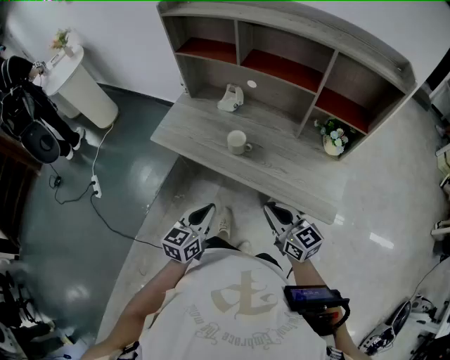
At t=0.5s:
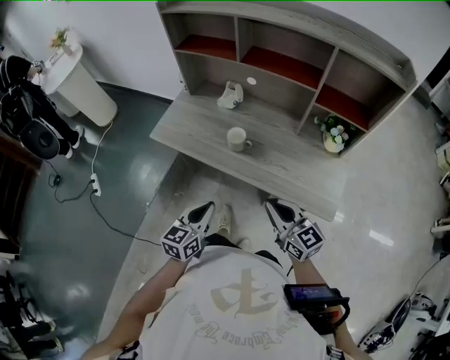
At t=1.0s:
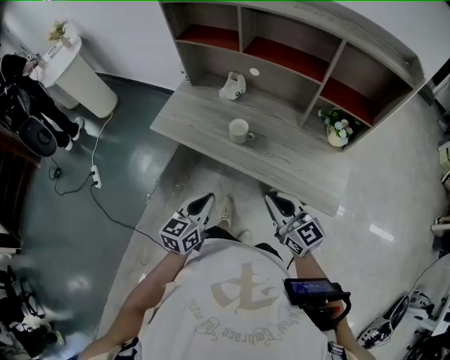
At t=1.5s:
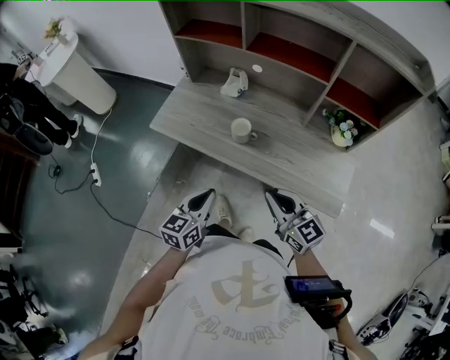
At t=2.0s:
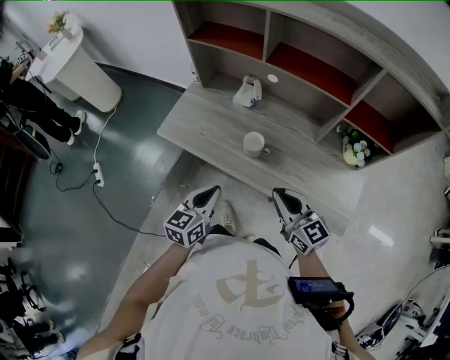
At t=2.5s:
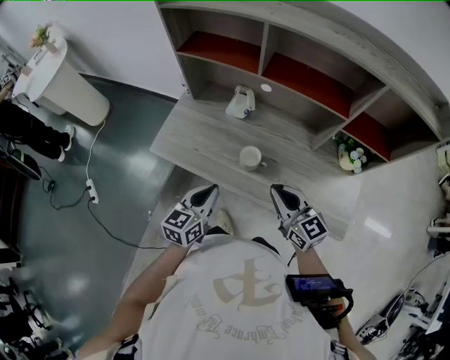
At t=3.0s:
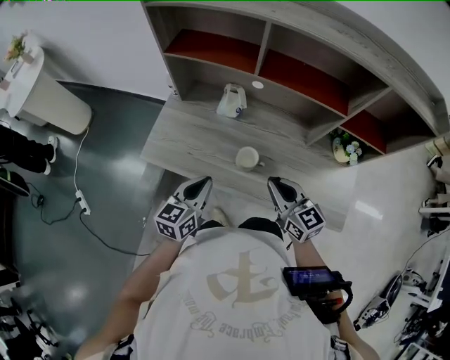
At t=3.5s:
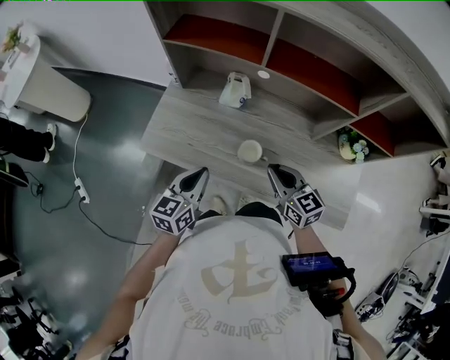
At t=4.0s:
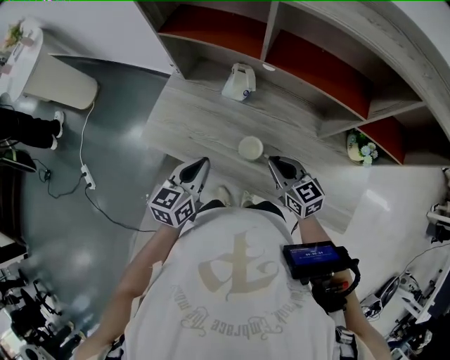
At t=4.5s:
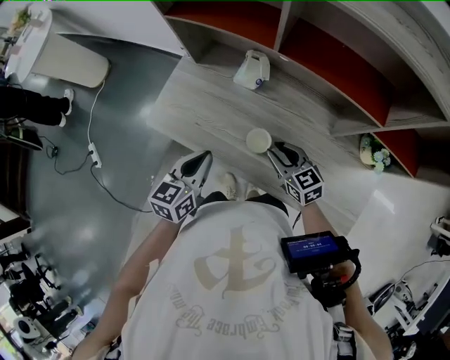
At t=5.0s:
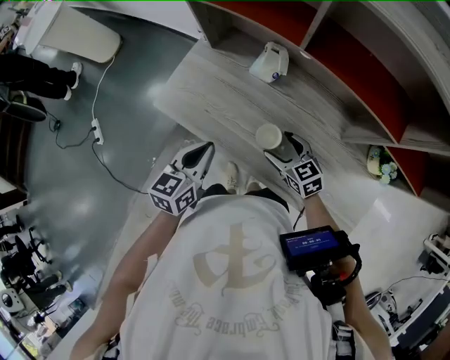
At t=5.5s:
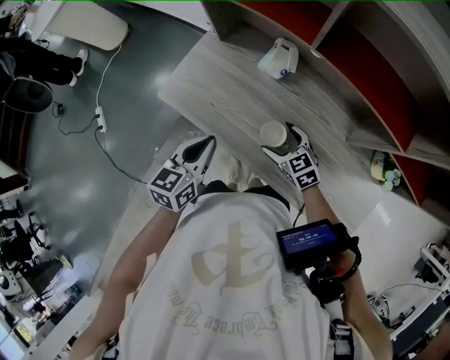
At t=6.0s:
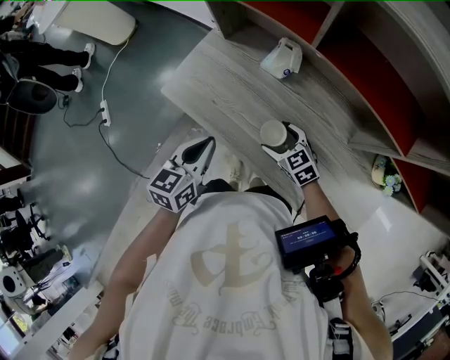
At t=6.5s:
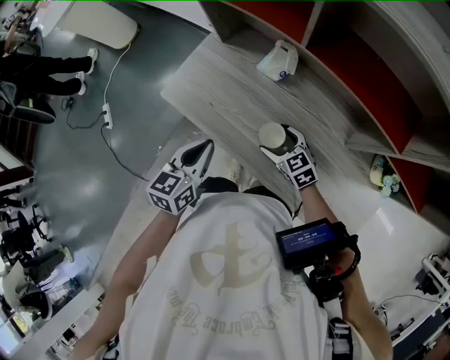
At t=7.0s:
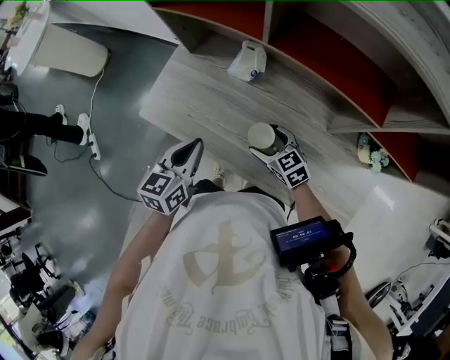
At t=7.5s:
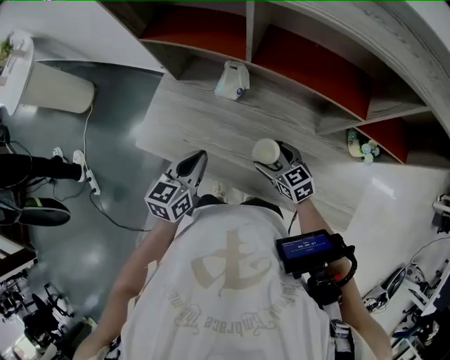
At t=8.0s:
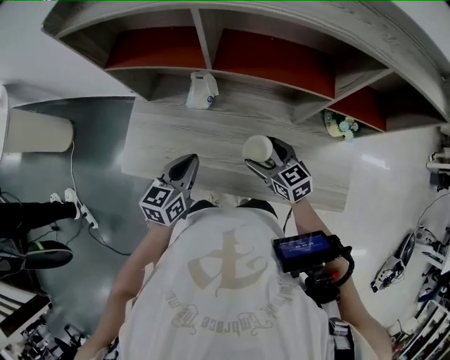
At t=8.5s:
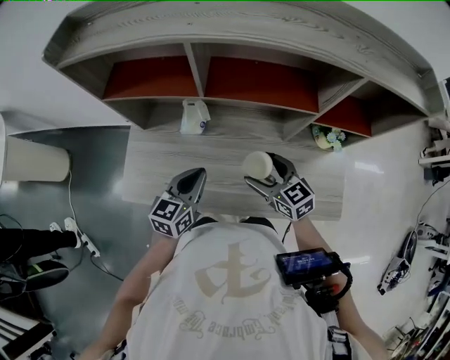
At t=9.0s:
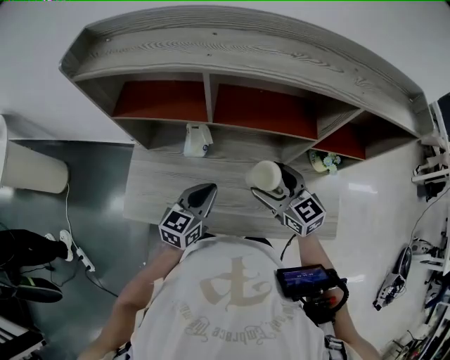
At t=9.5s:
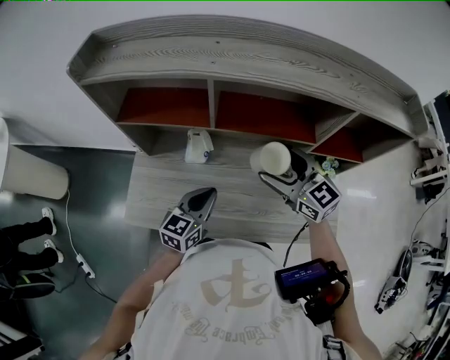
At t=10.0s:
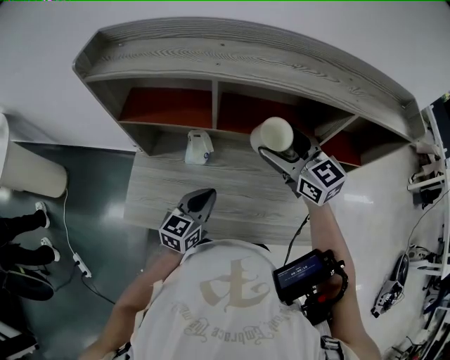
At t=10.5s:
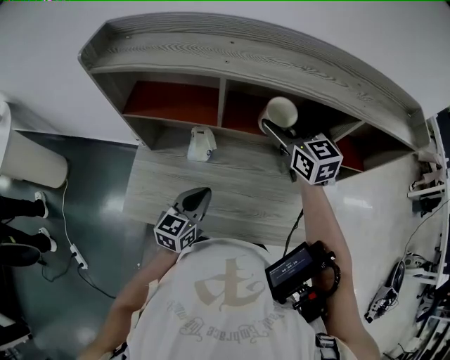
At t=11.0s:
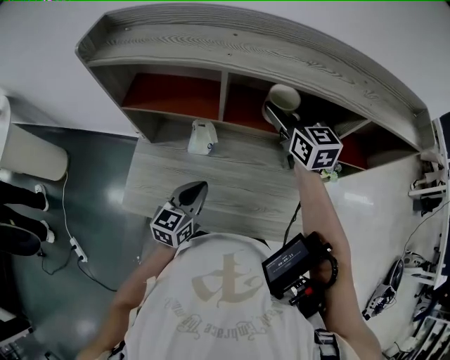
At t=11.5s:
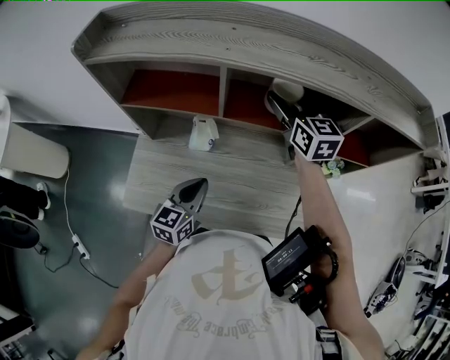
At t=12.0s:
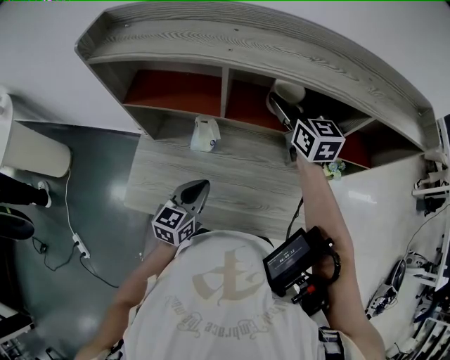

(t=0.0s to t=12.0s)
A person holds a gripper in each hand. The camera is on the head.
t=0.0s - t=2.0s: Both grippers move forward, approximately 10 cm.
t=2.0s - t=4.0s: The left gripper travels forward by about 20 cm, while the right gripper travels forward and downward by roughly 20 cm.
t=4.0s - t=6.0s: The right gripper goes roughly 15 cm downward and forward, turns by roughly 30 degrees, and opens its fingers.
t=6.0s - t=8.0s: The right gripper travels upward by approximately 10 cm, and swivels some 30 degrees, while the left gripper moves about 10 cm, and swivels approximately 30 degrees.
t=8.0s - t=10.0s: The right gripper travels upward and forward by roughly 30 cm, and rotates about 20 degrees. The left gripper changes place by some 5 cm.
t=10.0s - t=12.0s: The right gripper moves forward, roughly 10 cm.

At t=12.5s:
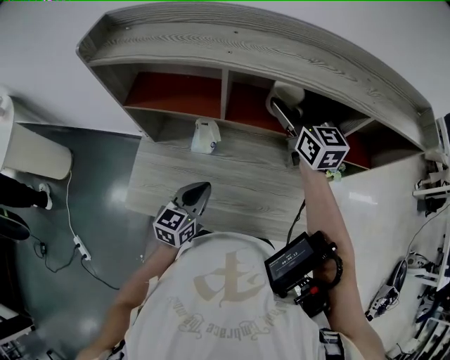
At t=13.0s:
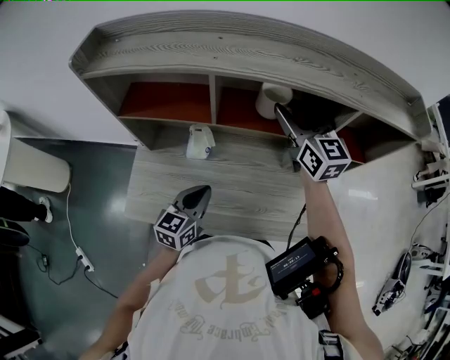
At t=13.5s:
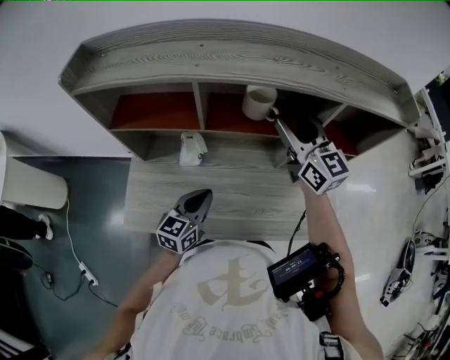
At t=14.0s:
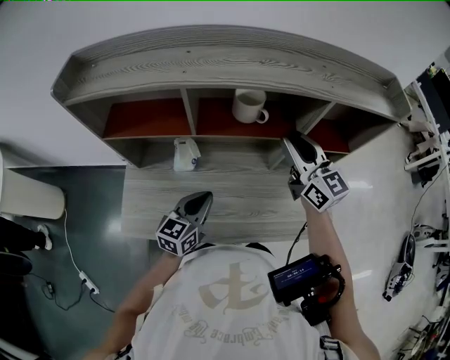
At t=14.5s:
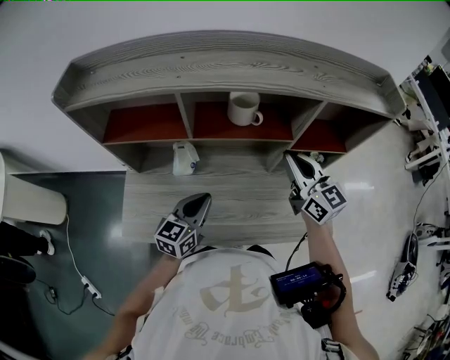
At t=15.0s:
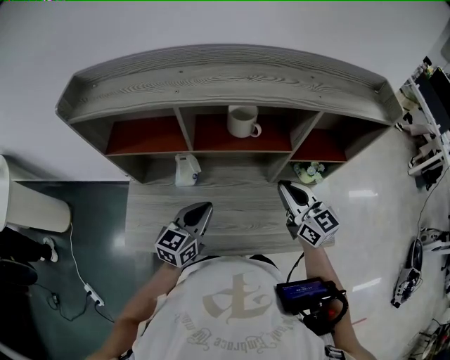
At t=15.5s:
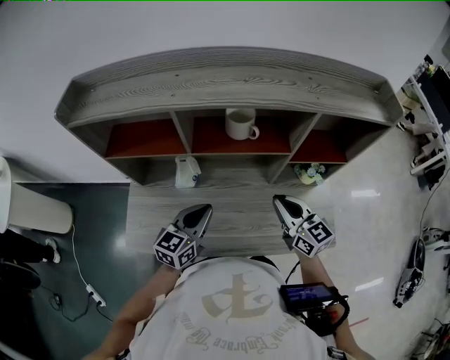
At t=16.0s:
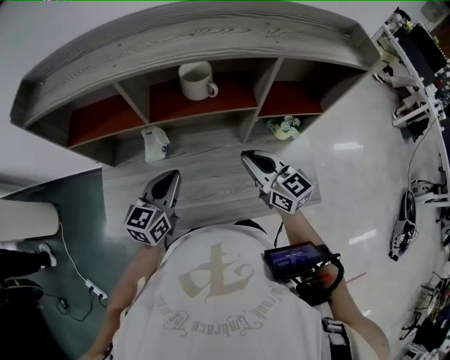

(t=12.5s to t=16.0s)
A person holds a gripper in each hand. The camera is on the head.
t=12.5s - t=14.5s: The right gripper travels backward and to the right by roughly 15 cm, and closes. The left gripper is displaced to the right by some 5 cm.
t=14.5s - t=16.0s: The right gripper goes roughly 10 cm downward.

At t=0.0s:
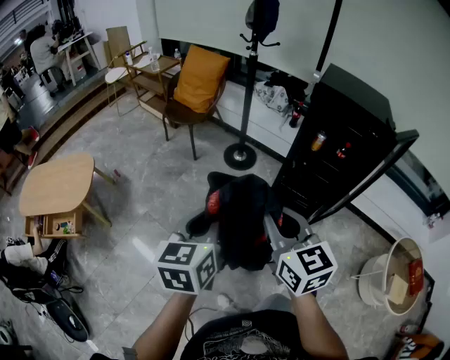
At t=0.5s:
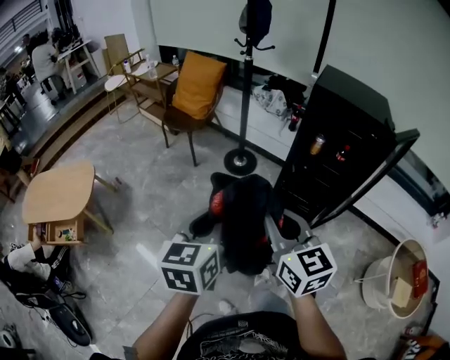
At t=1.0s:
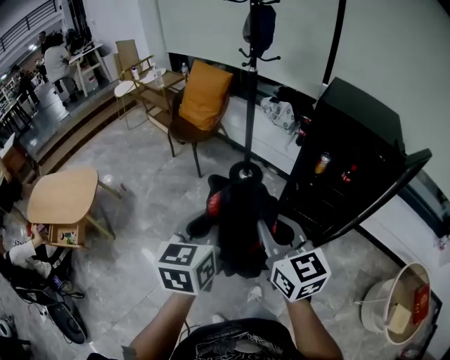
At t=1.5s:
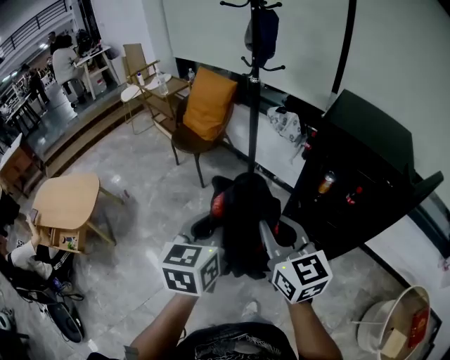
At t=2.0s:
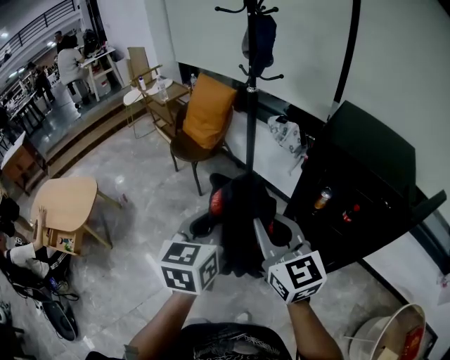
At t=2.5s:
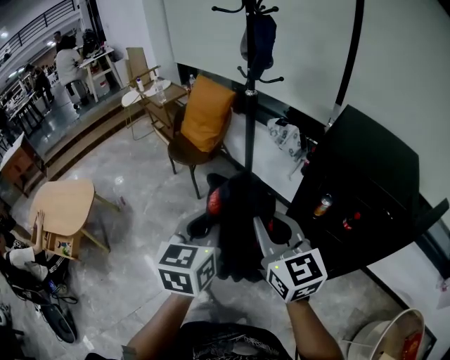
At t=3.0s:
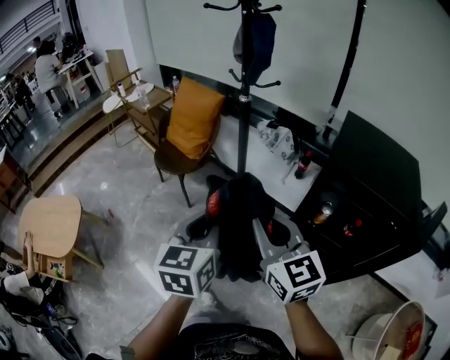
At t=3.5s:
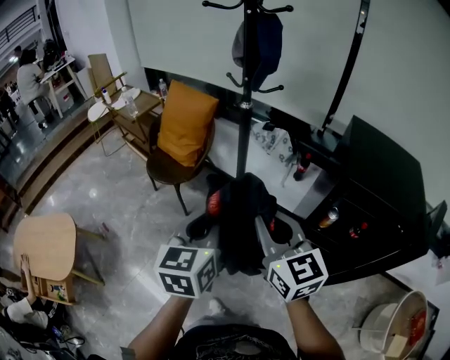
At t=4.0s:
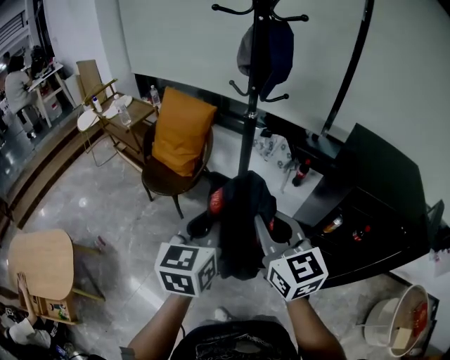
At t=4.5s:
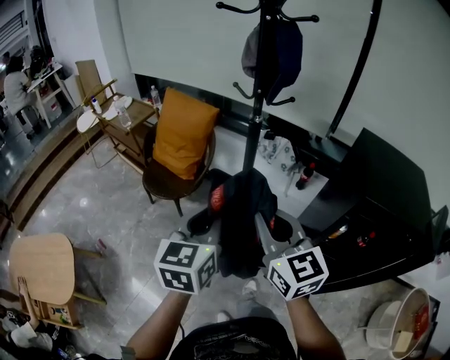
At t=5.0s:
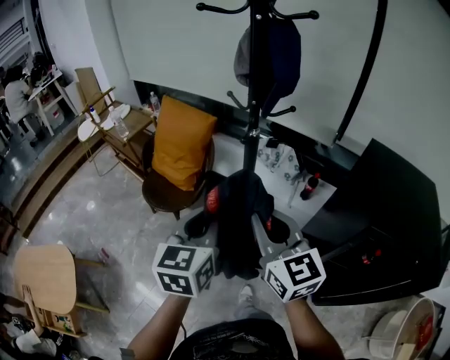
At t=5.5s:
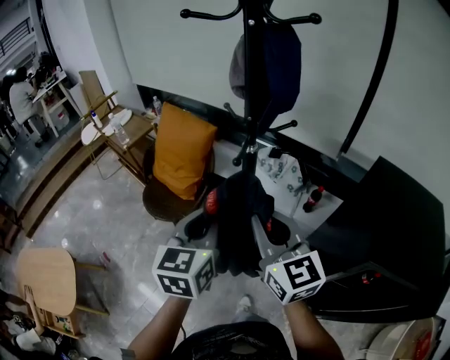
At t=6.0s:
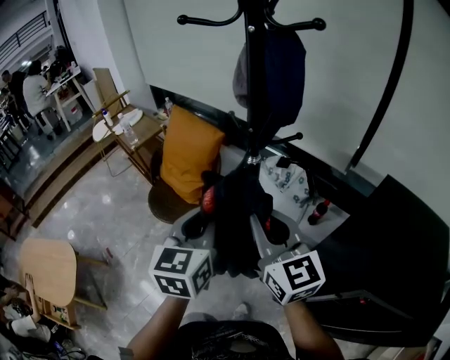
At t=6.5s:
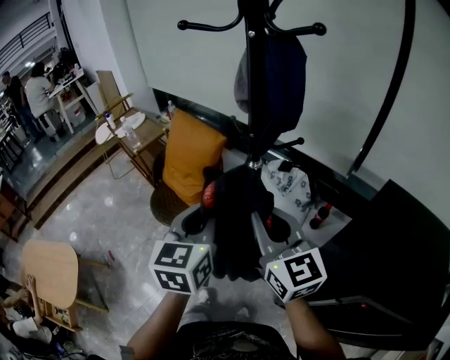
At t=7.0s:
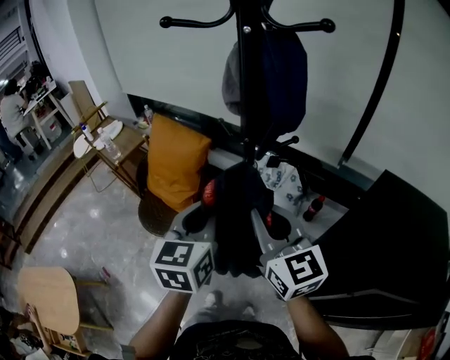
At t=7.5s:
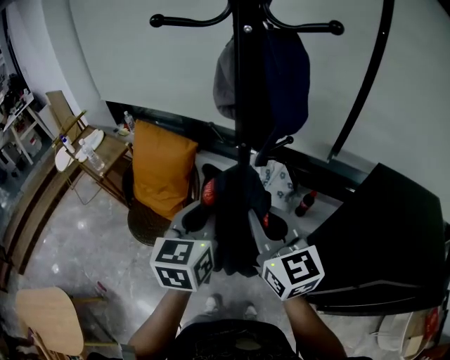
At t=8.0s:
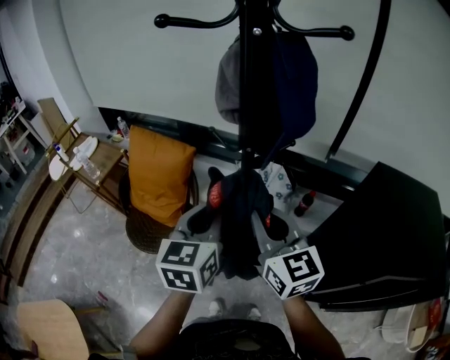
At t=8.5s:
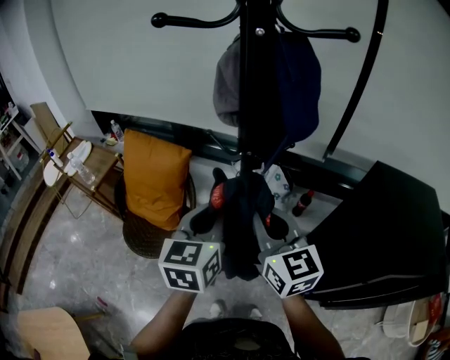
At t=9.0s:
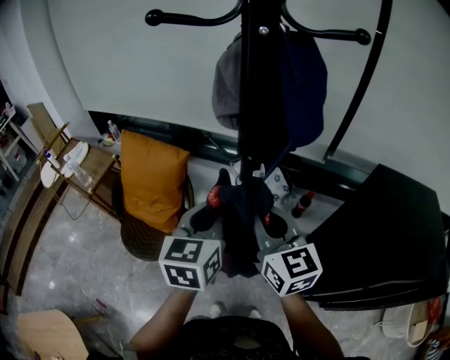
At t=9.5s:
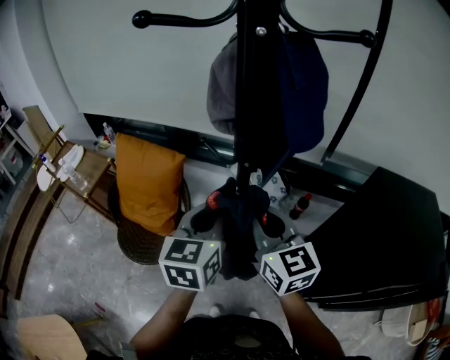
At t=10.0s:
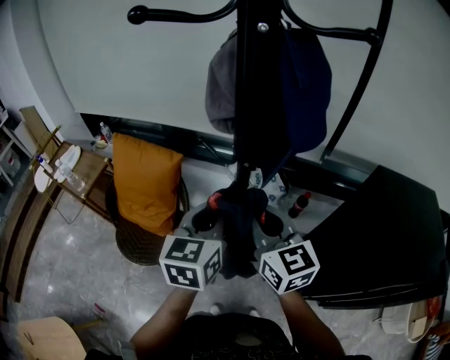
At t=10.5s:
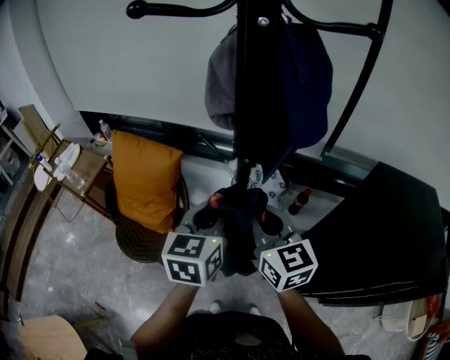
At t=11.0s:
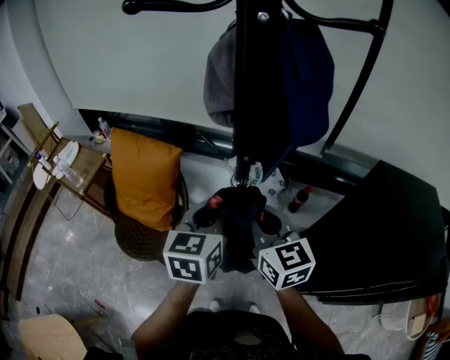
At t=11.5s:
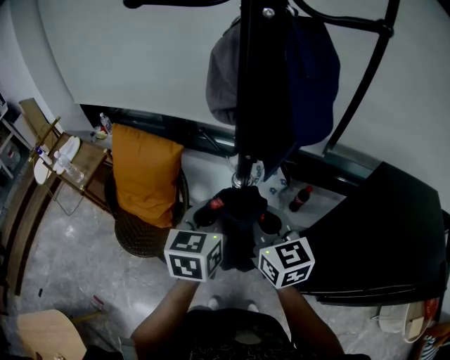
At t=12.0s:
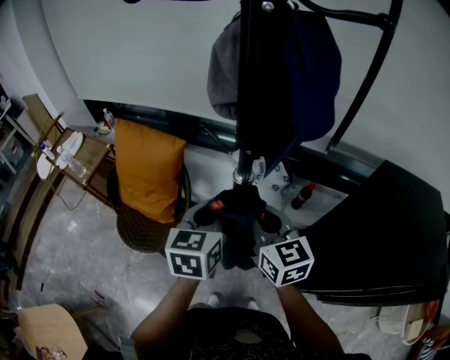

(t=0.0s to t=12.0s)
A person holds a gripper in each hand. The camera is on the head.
t=0.0s - t=2.0s: Both grippers move forward and to the right, some 30 cm.
t=2.0s - t=4.0s: The two grippers go approximately 25 cm forward and to the left.
t=4.0s - t=6.0s: Both grippers move forward, approximately 20 cm.
t=6.0s - t=8.0s: The grippers both shift forward by some 10 cm.
t=8.0s - t=10.0s: Both grippers move forward, about 5 cm.
t=10.0s - t=12.0s: The two grippers go about 5 cm downward.
